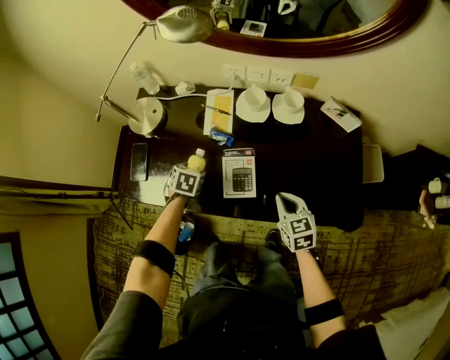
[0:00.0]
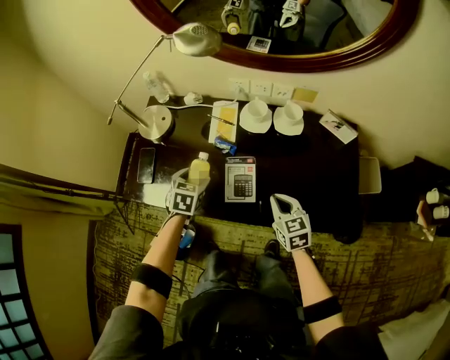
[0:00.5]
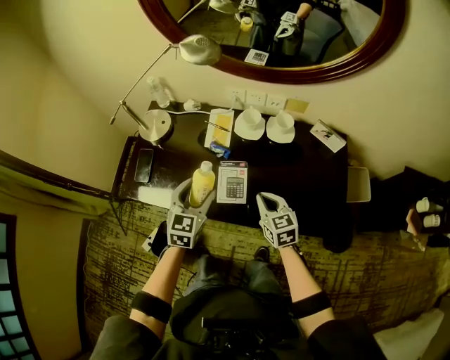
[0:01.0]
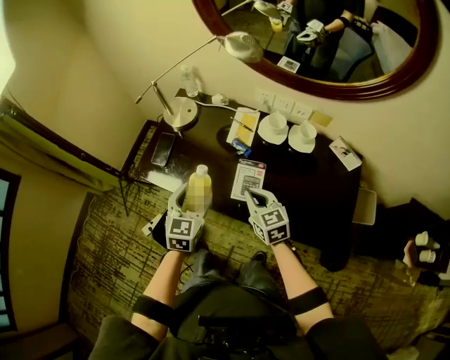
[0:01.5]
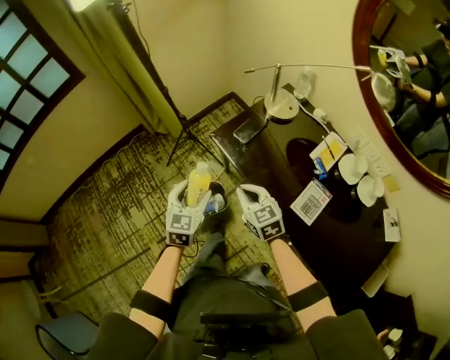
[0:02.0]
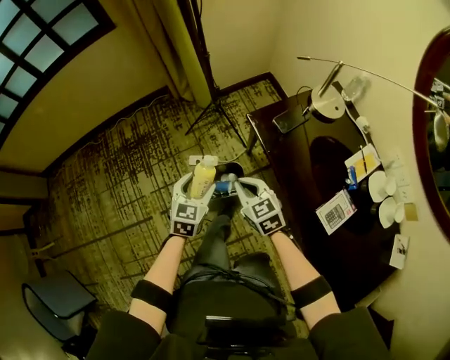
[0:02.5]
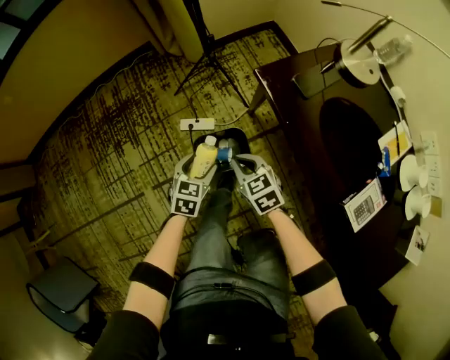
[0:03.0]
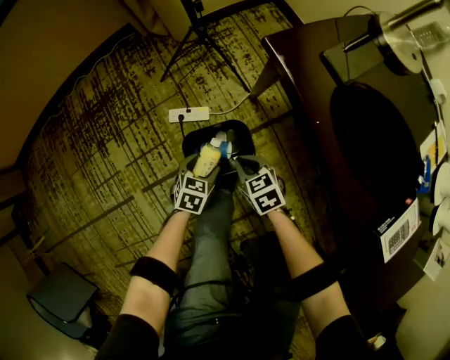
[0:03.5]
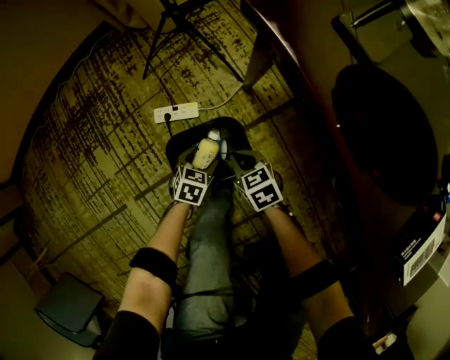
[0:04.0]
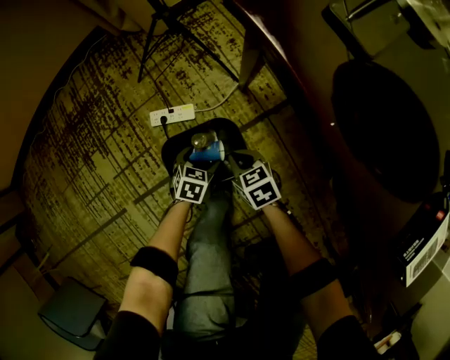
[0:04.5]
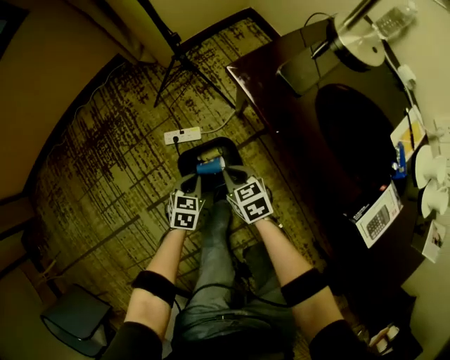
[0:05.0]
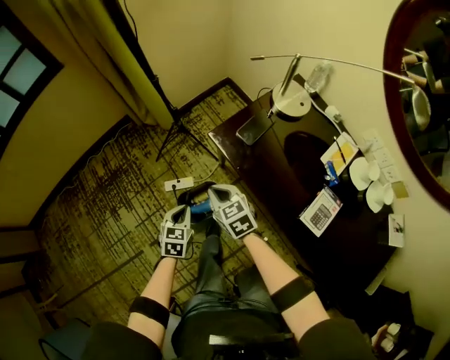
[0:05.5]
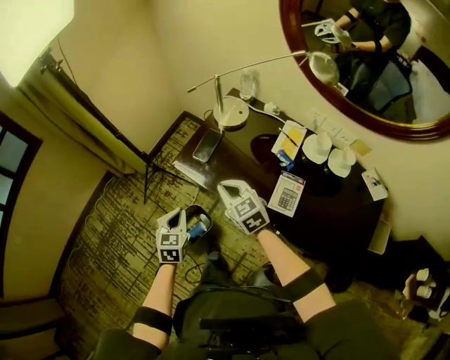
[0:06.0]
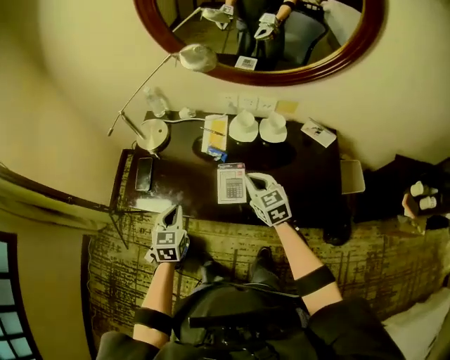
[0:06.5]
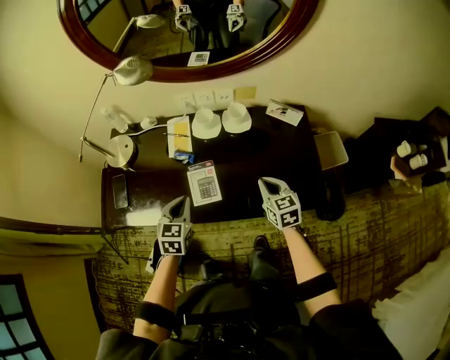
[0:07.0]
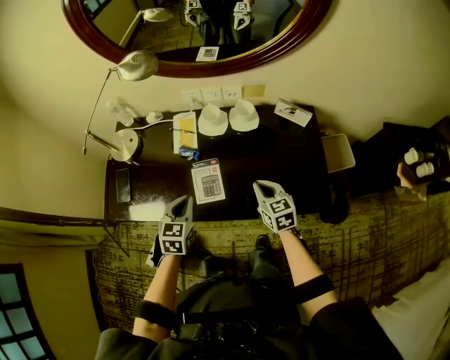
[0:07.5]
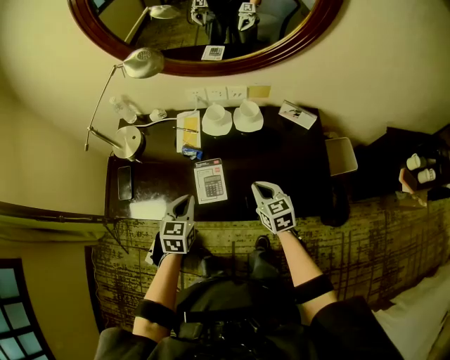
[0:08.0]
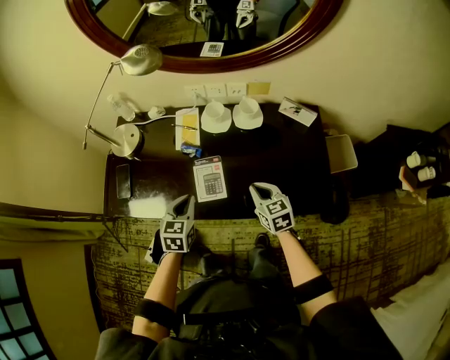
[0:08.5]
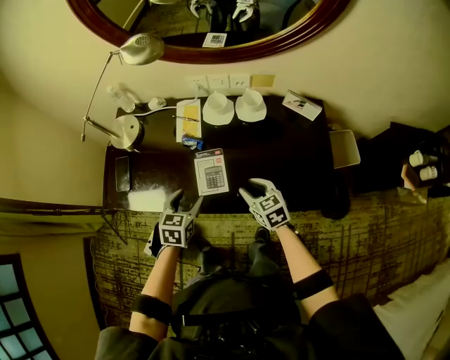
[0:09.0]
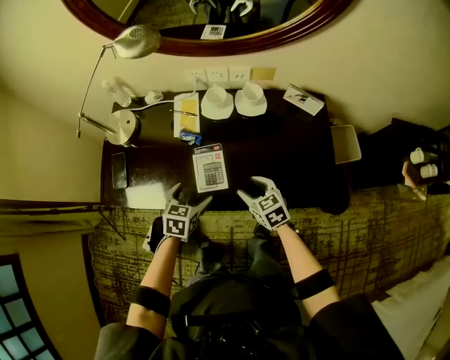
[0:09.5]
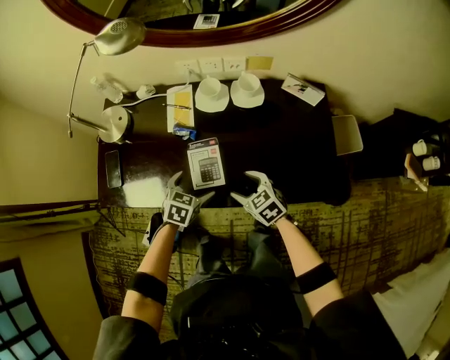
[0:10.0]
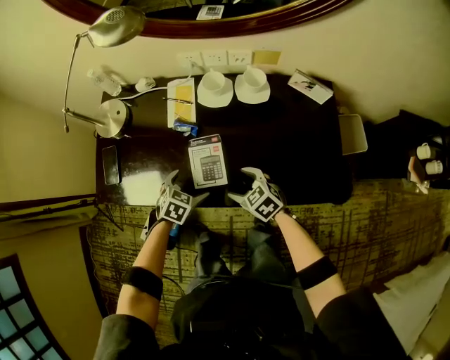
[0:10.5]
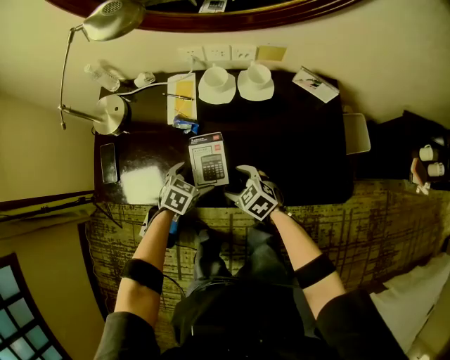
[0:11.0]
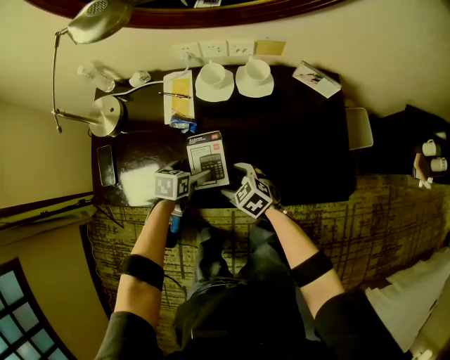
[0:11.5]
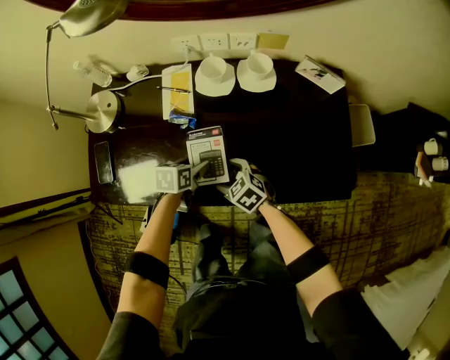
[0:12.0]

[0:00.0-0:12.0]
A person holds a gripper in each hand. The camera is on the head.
0:00.0 to 0:02.0: The left gripper moves approximately 40 cm, and tilts its fingers some 40 degrees upward. Meanwhile the right gripper ends up approximately 40 cm from where it was, and rotates about 60 degrees.
0:02.0 to 0:04.0: Both grippers move downward, approximately 60 cm. The left gripper tips its fingers downward by about 30 degrees; the right gripper changes its angle by about 30 degrees.
0:04.0 to 0:06.0: Both grippers move upward, about 60 cm. The right gripper swivels some 30 degrees, while the left gripper swivels approximately 30 degrees, and closes.
0:06.0 to 0:08.0: The left gripper shifts by approximately 35 cm, and turns by about 40 degrees, while the right gripper ends up some 40 cm from where it was, and rotates approximately 50 degrees.
0:08.0 to 0:10.0: The right gripper goes about 10 cm downward and to the left, changes its angle by about 20 degrees, and opens up, while the left gripper heads downward, covering about 10 cm, changes its angle by roughly 20 degrees, and opens up.
0:10.0 to 0:12.0: The right gripper heads downward and to the left, covering some 10 cm. The left gripper travels downward and forward by roughly 10 cm, rotates some 30 degrees, and closes its fingers.

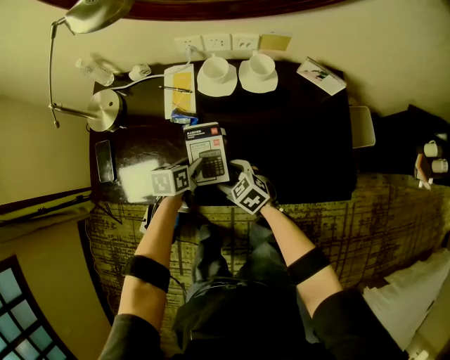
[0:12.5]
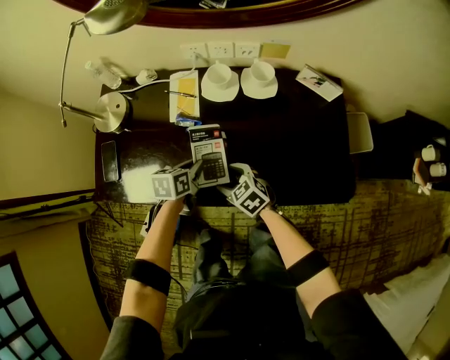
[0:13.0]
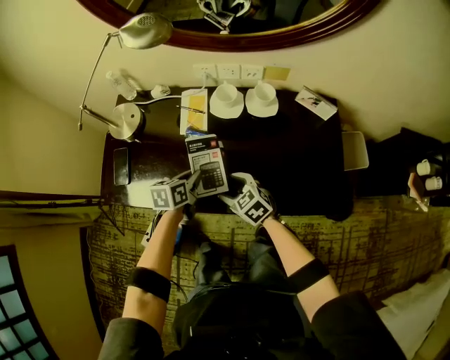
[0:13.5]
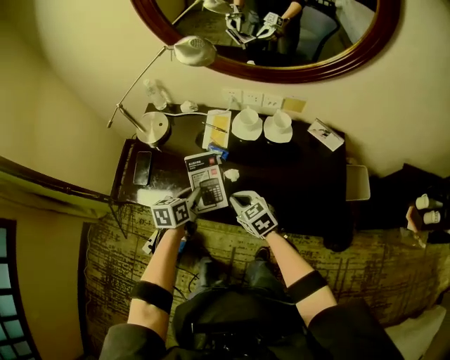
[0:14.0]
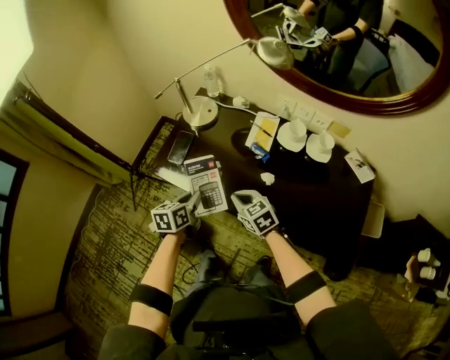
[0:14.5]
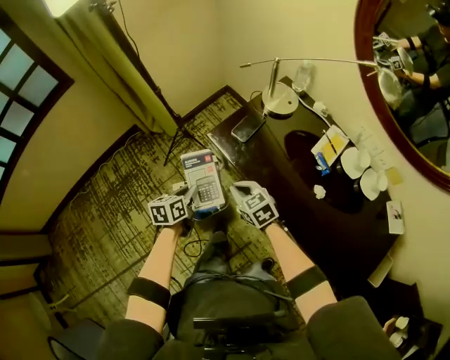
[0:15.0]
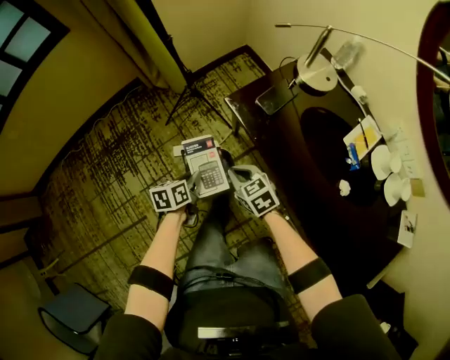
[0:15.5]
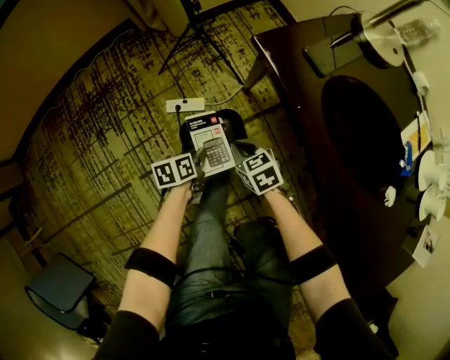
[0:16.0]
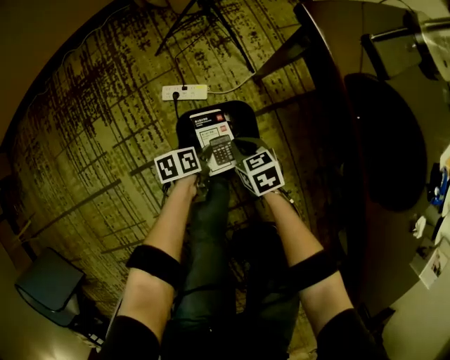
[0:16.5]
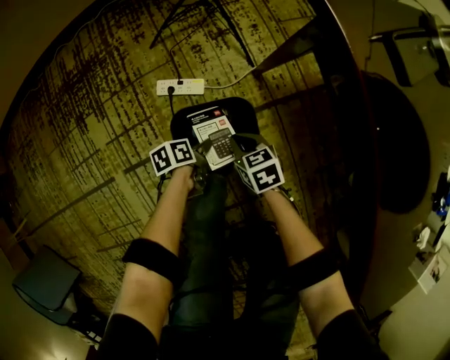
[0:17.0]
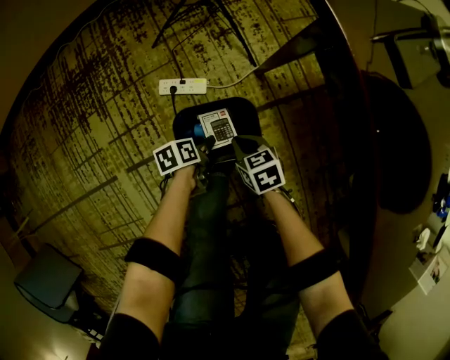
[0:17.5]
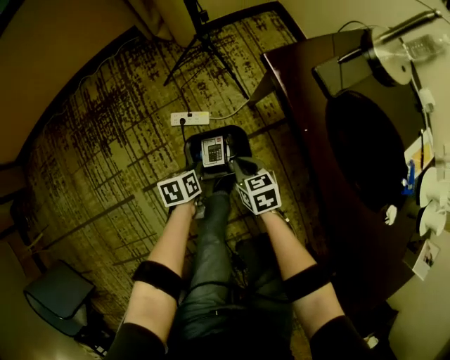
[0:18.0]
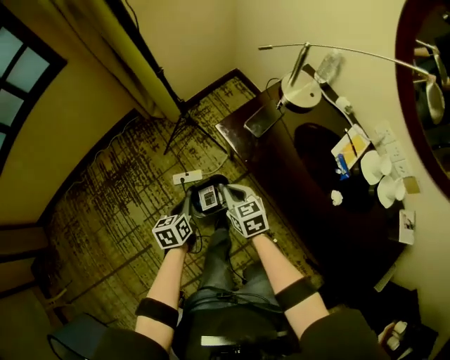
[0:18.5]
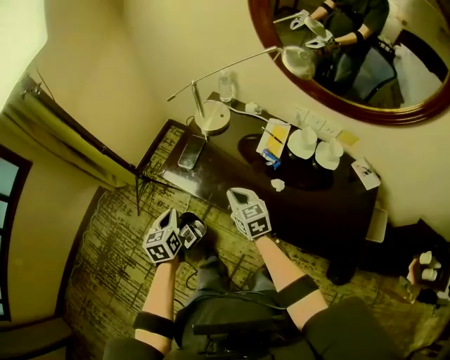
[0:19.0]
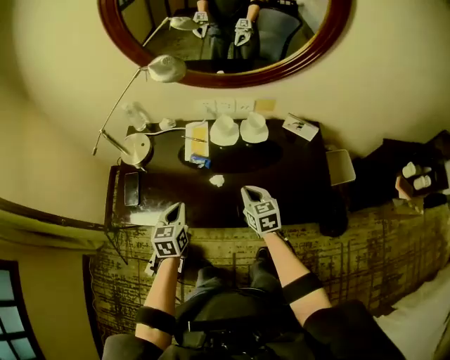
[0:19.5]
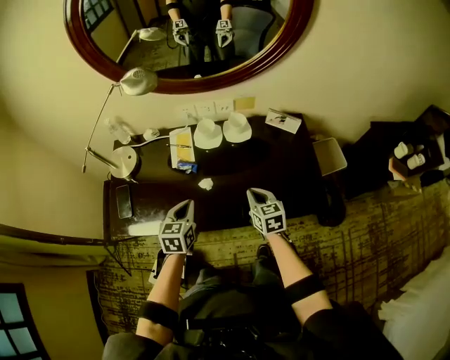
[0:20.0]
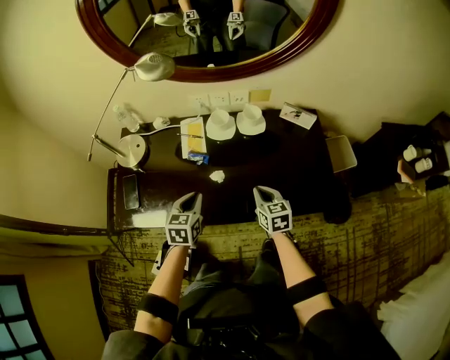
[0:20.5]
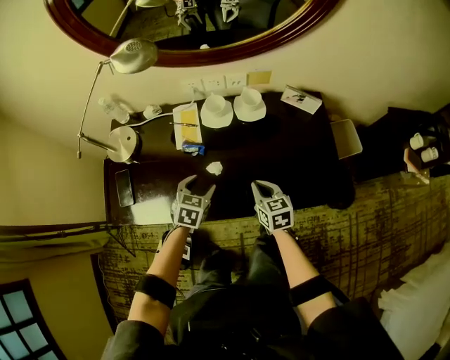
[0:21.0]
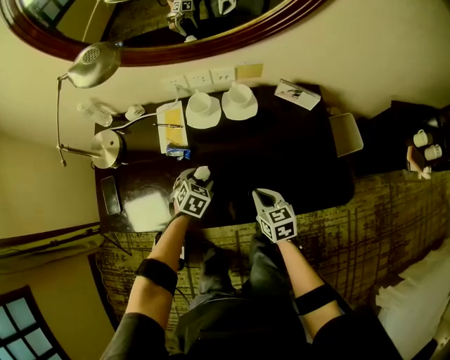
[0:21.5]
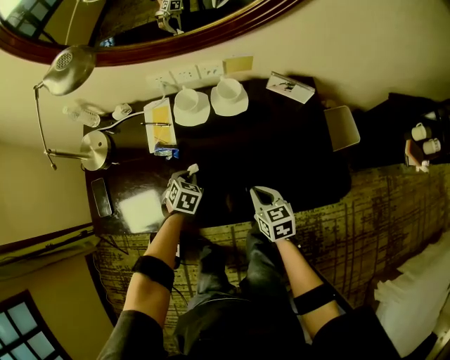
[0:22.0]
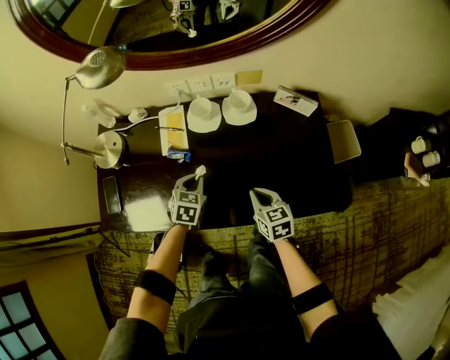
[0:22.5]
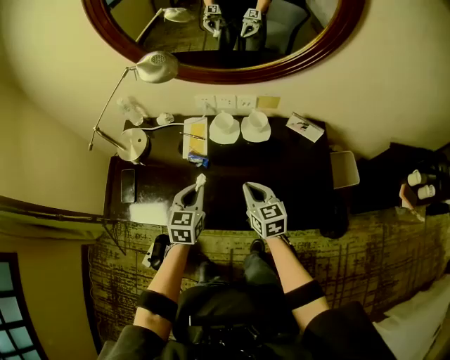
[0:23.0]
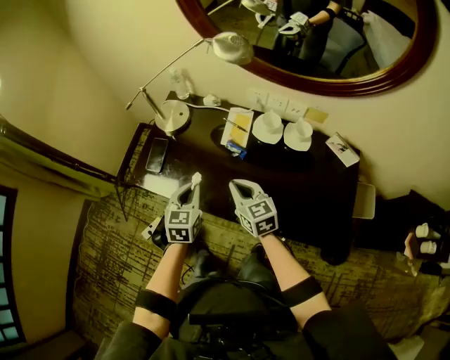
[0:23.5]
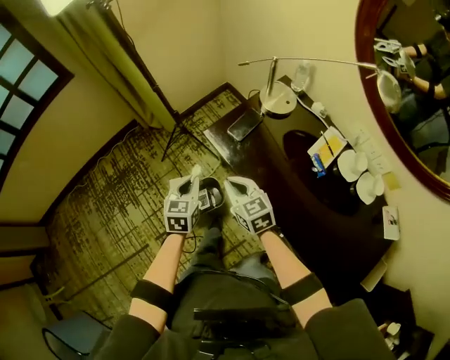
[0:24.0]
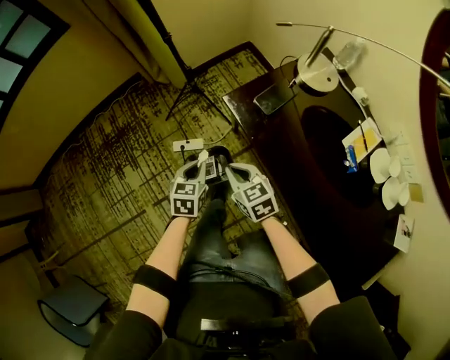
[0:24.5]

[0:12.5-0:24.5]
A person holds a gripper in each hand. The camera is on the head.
0:12.5 to 0:14.5: The left gripper is displaced to the left, upward and backward by some 30 cm, and turns by some 40 degrees. Meanwhile the right gripper heads upward and to the left, covering about 20 cm, and closes its fingers.
0:14.5 to 0:16.5: The two grippers go some 50 cm downward. The right gripper changes its angle by approximately 40 degrees. Meanwhile the left gripper rolls counterclockwise, seen from behind, by approximately 50 degrees.
0:16.5 to 0:18.5: The two grippers go about 40 cm upward. The left gripper turns by approximately 40 degrees, and opens, then closes once more; the right gripper rotates some 30 degrees.
0:18.5 to 0:20.5: The two grippers travel together, about 50 cm. The right gripper rotates about 70 degrees. The left gripper turns by some 80 degrees.
0:20.5 to 0:22.5: The right gripper heads downward, covering about 5 cm. The left gripper travels downward, forward and to the right by roughly 15 cm, and opens, then closes once more.
0:22.5 to 0:24.5: The pair of grippers is taken some 50 cm. The right gripper changes its angle by roughly 70 degrees. Meanwhile the left gripper turns by roughly 70 degrees.

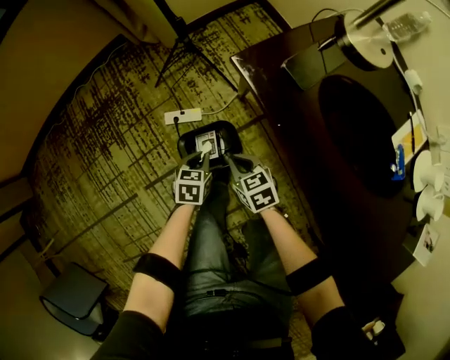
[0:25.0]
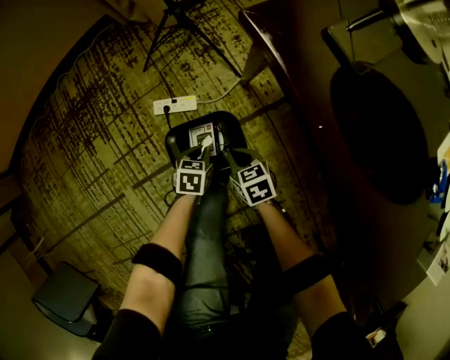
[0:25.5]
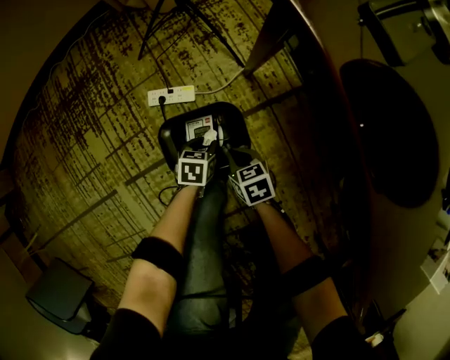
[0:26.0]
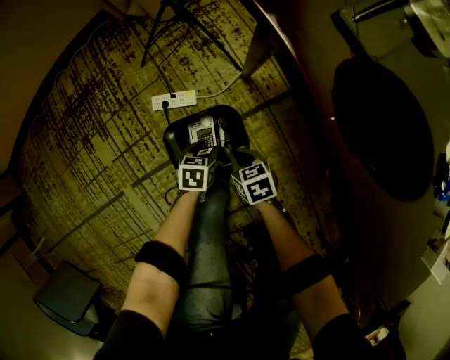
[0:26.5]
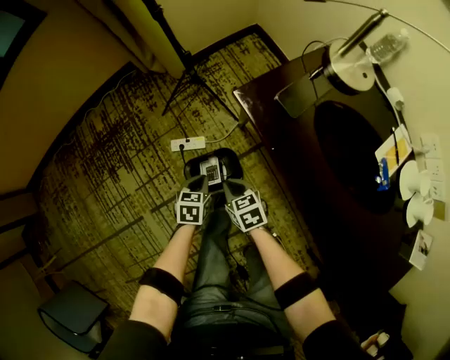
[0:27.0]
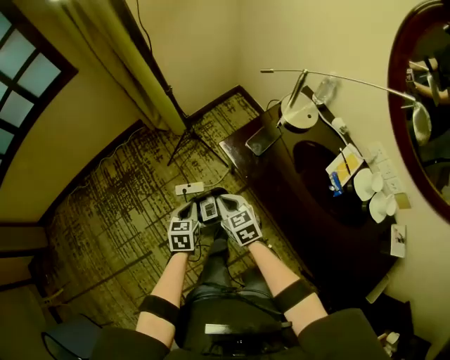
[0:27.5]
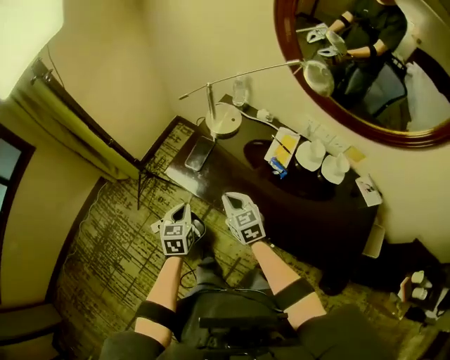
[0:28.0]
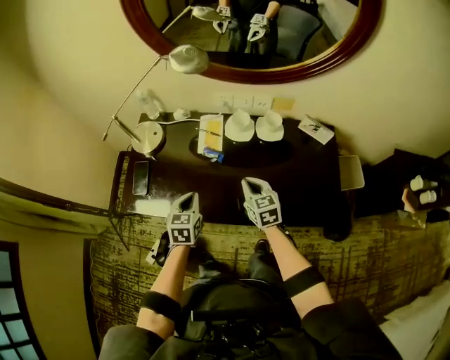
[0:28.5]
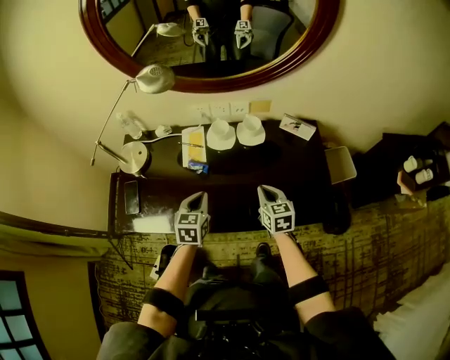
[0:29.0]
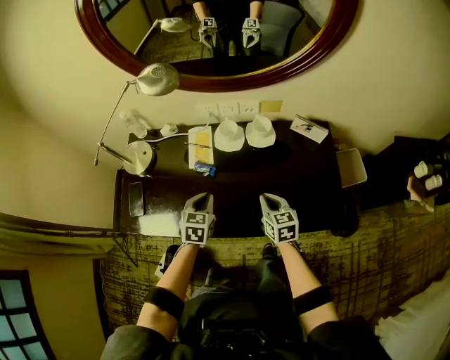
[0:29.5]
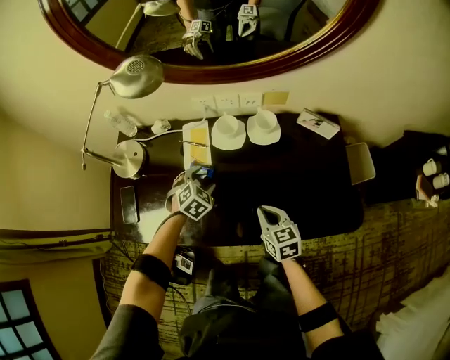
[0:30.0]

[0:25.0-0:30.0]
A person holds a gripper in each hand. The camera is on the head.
0:25.0 to 0:27.5: Both grippers travel together upward, approximately 30 cm.
0:27.5 to 0:30.0: Both grippers are carried roughly 60 cm. The left gripper rolls clockwise, seen from behind, by some 90 degrees, and opens up; the right gripper swivels approximately 70 degrees.
